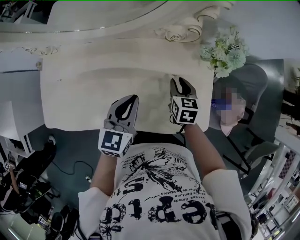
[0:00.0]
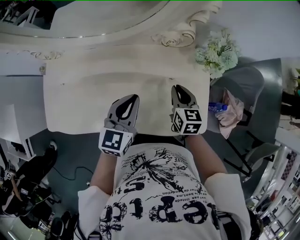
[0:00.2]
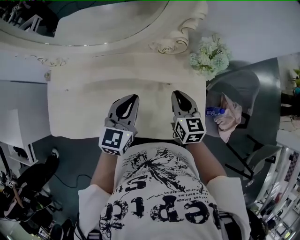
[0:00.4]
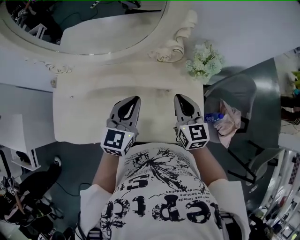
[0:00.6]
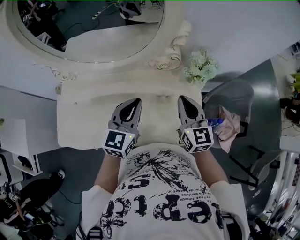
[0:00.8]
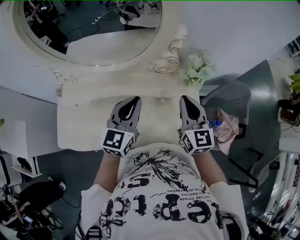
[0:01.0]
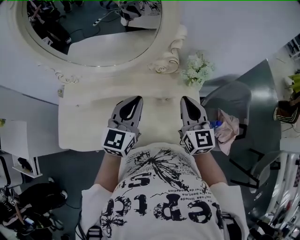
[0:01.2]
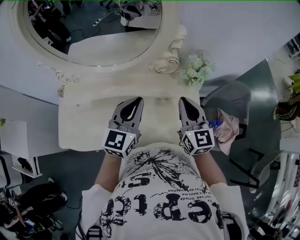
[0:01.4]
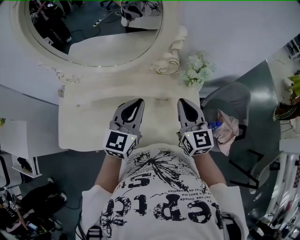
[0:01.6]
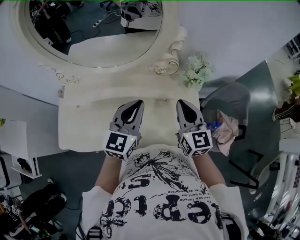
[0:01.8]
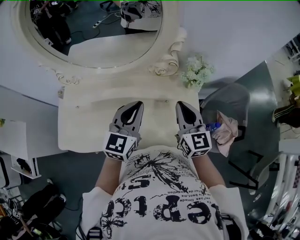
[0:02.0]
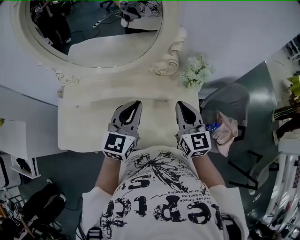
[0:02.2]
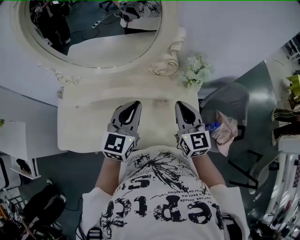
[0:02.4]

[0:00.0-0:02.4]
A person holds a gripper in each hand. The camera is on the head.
0:00.0 to 0:01.2: The right gripper heads upward, covering some 25 cm, tips its fingers upward by some 40 degrees, and closes its fingers. The left gripper travels upward by approximately 15 cm.
0:01.2 to 0:02.4: The grippers move only a little.

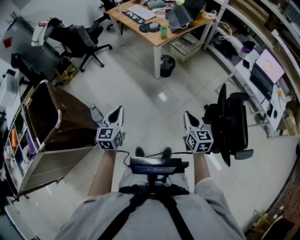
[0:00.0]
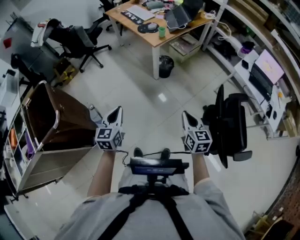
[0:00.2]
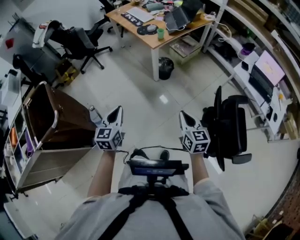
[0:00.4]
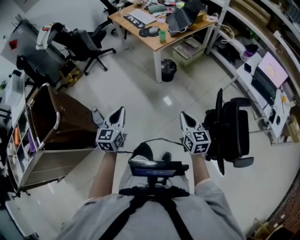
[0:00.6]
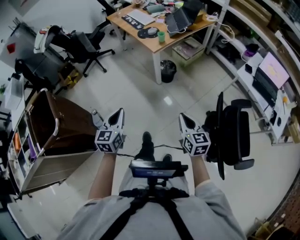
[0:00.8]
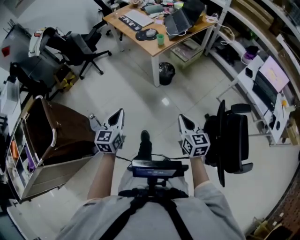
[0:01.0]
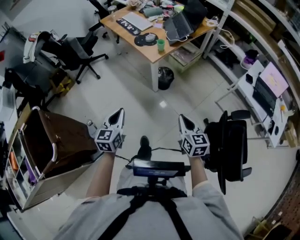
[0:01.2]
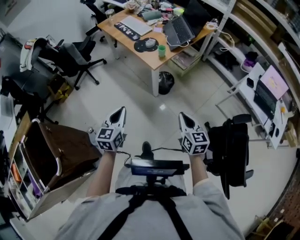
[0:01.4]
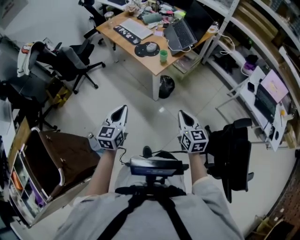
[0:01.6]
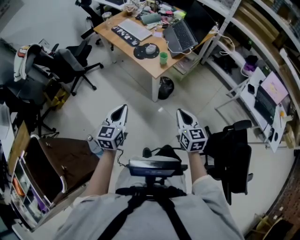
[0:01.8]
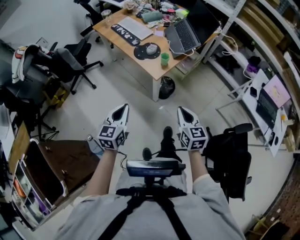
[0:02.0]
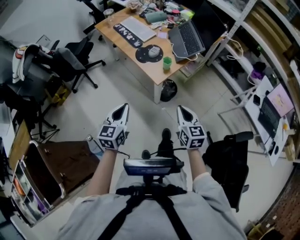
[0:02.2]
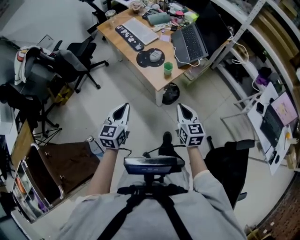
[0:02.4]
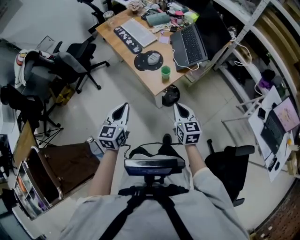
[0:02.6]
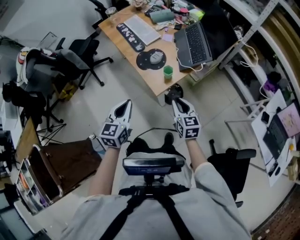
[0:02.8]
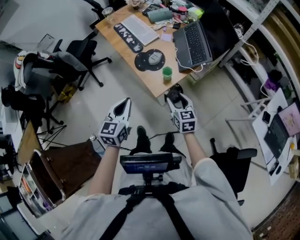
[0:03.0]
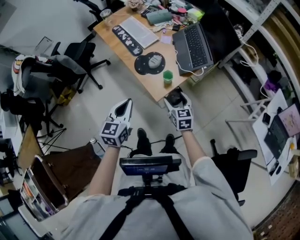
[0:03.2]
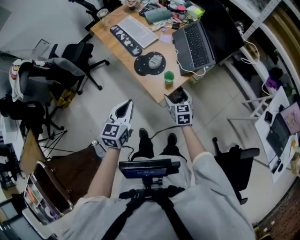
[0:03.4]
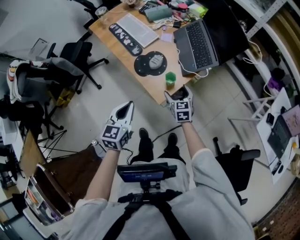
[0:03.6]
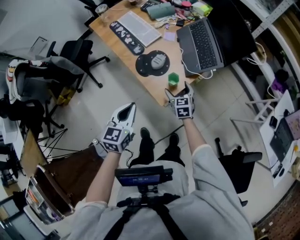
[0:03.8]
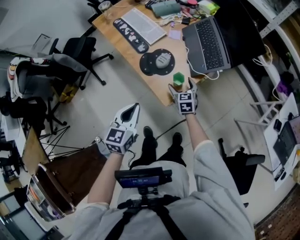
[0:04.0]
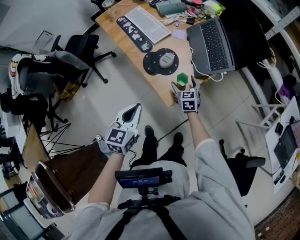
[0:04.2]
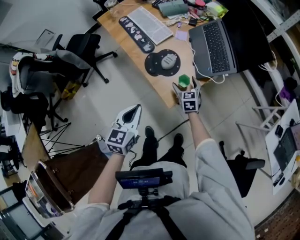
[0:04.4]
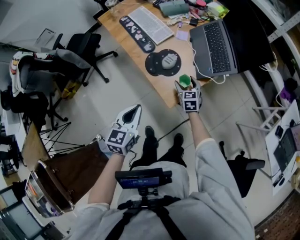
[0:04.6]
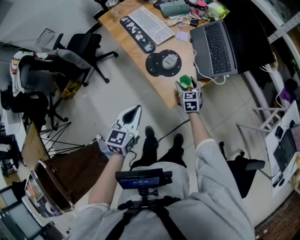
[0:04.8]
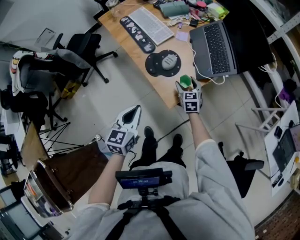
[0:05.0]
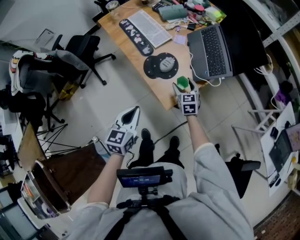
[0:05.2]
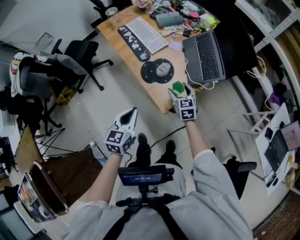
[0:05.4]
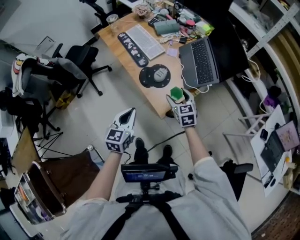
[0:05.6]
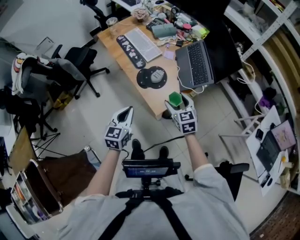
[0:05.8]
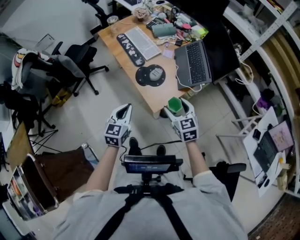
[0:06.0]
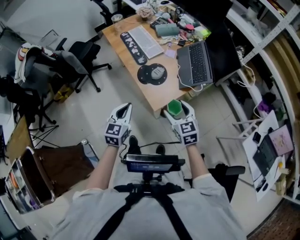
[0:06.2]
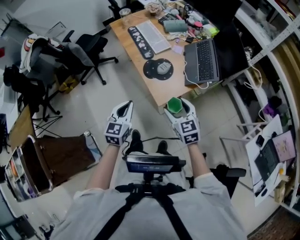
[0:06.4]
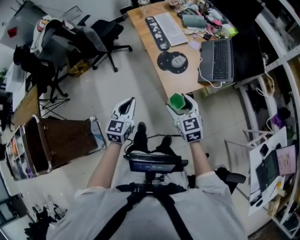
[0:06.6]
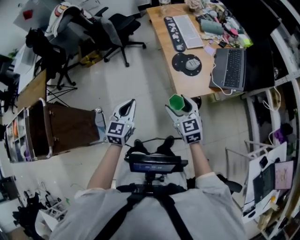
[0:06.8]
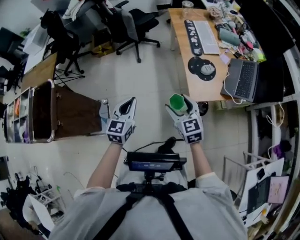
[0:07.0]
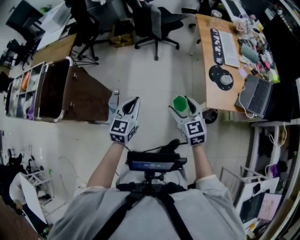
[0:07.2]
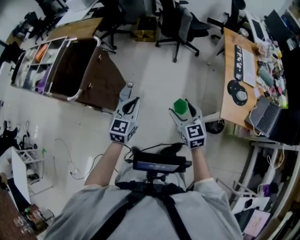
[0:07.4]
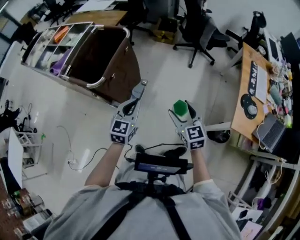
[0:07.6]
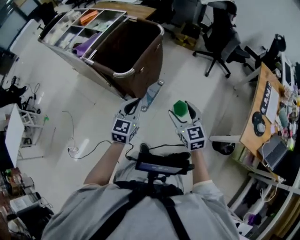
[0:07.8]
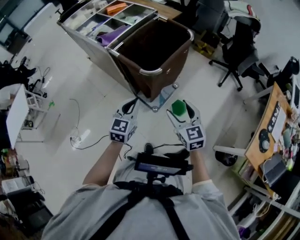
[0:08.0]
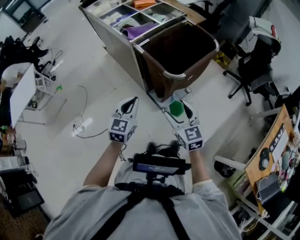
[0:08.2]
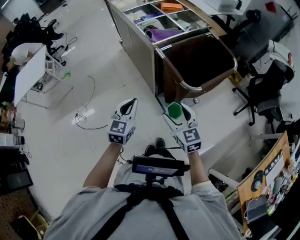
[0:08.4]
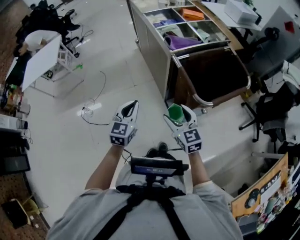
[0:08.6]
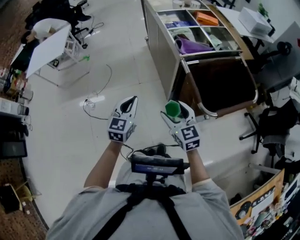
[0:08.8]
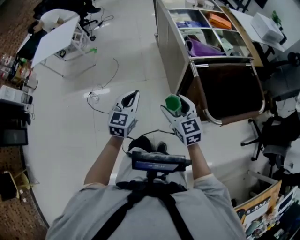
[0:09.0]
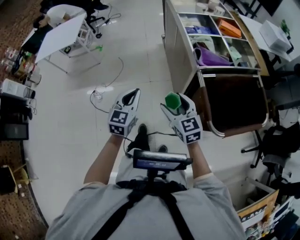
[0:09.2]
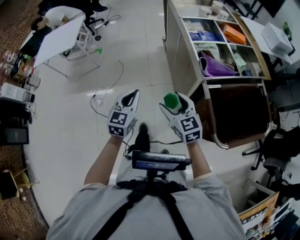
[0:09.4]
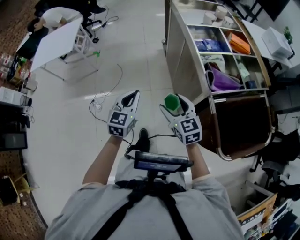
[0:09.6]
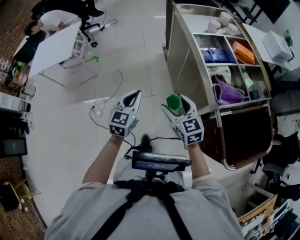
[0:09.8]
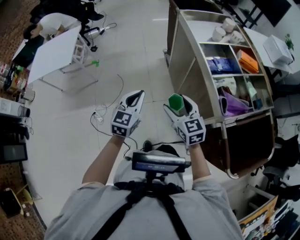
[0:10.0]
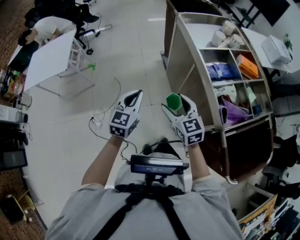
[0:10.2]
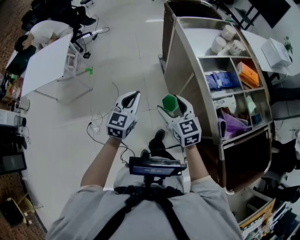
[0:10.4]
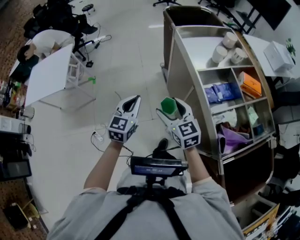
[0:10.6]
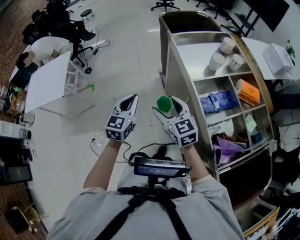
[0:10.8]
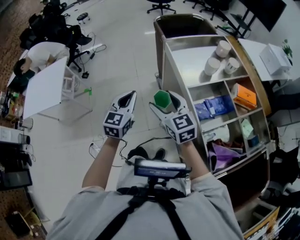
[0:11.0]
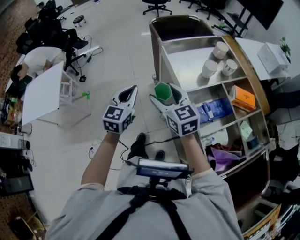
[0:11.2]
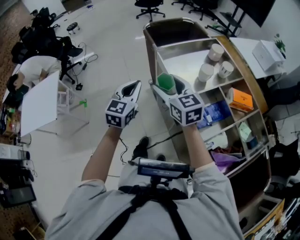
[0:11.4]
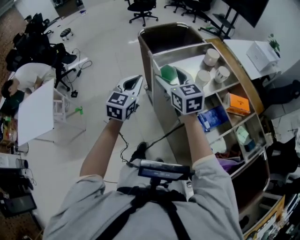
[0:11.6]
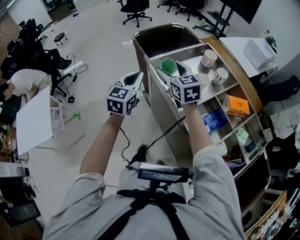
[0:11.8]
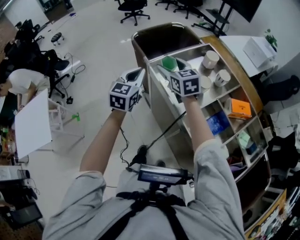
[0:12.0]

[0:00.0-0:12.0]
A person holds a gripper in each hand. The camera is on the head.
0:00.0 to 0:01.6: The grippers both shift forward by some 30 cm.
0:01.6 to 0:03.0: Both grippers travel together forward, some 30 cm. The right gripper opens.
0:03.0 to 0:04.4: The left gripper moves forward and downward, about 10 cm. Meanwhile the right gripper goes some 25 cm forward and downward, and opens up.
0:04.4 to 0:06.0: The right gripper heads upward and backward, covering roughly 25 cm.
0:06.0 to 0:07.6: The pair of grippers is taken about 50 cm. The left gripper turns by approximately 60 degrees; the right gripper rotates about 60 degrees.
0:07.6 to 0:09.0: Both grippers are carried approximately 50 cm. The left gripper rotates approximately 60 degrees, while the right gripper swivels some 60 degrees.
0:09.0 to 0:10.4: The grippers both shift forward by approximately 35 cm.
0:10.4 to 0:12.0: Both grippers are carried forward, about 50 cm.

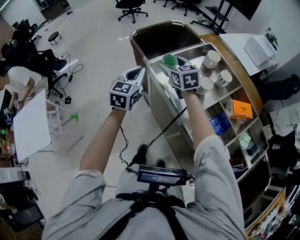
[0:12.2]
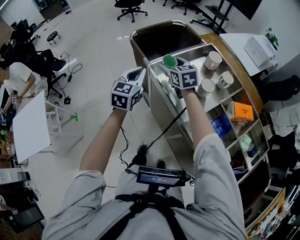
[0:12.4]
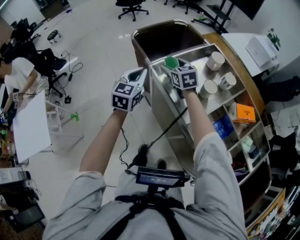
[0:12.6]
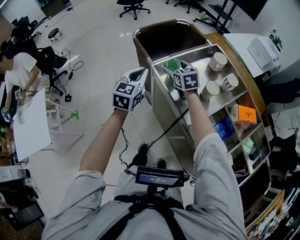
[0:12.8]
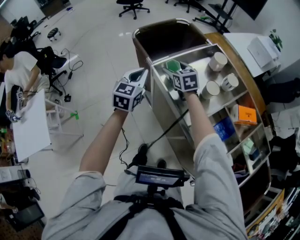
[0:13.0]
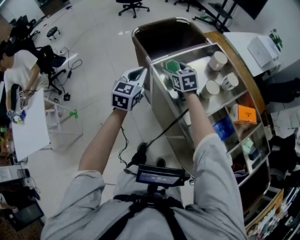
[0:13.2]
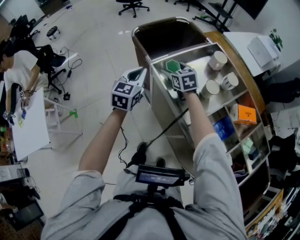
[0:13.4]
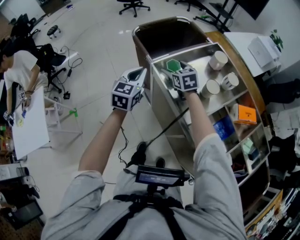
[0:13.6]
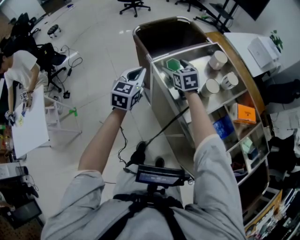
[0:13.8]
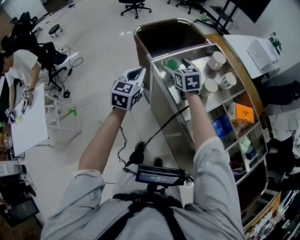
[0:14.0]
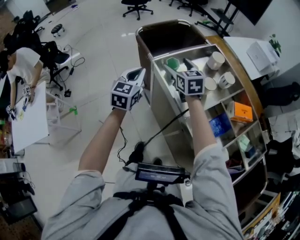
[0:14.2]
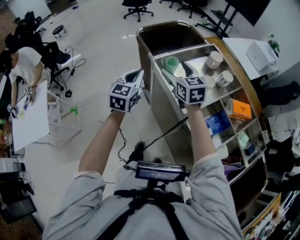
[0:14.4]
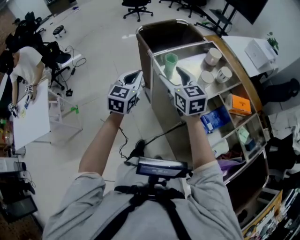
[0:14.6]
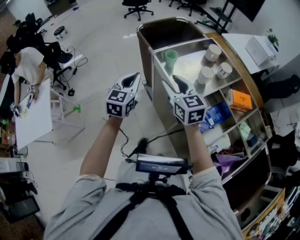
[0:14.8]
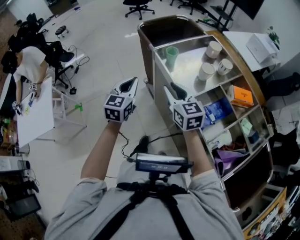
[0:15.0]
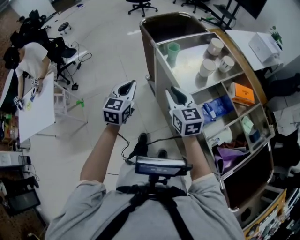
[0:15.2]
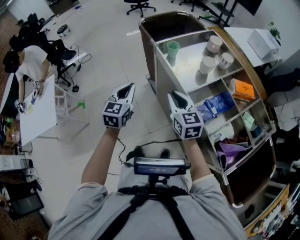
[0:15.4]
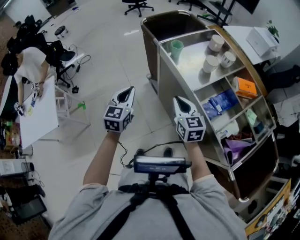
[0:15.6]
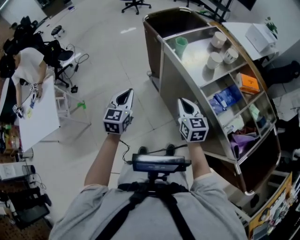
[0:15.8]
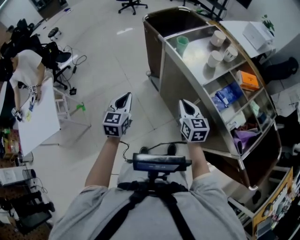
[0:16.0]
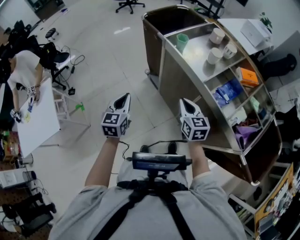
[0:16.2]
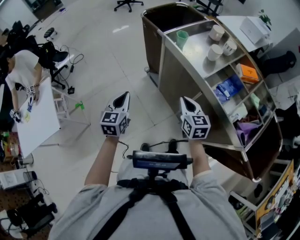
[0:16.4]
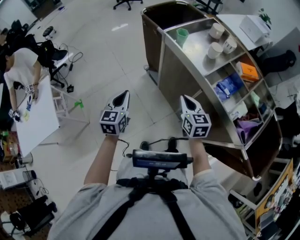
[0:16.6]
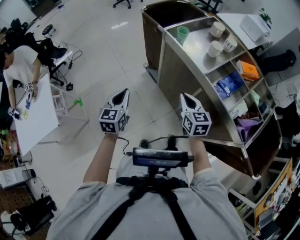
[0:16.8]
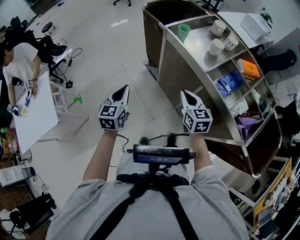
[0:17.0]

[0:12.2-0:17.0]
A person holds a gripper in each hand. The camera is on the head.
0:12.2 to 0:13.8: The right gripper heads downward, covering roughly 10 cm.
0:13.8 to 0:15.4: The grippers both shift backward by about 25 cm. The right gripper closes.
0:15.4 to 0:17.0: The left gripper is displaced to the left, backward and downward by roughly 15 cm. Meanwhile the right gripper goes approximately 10 cm downward and backward.

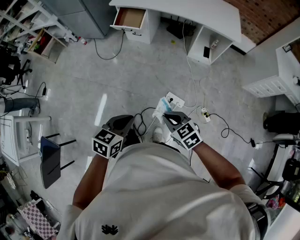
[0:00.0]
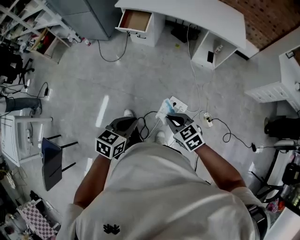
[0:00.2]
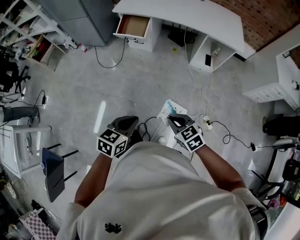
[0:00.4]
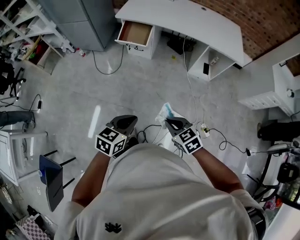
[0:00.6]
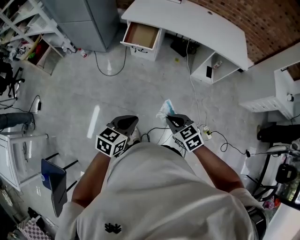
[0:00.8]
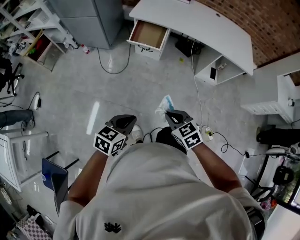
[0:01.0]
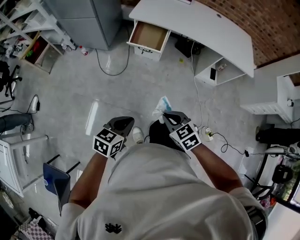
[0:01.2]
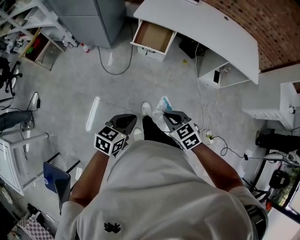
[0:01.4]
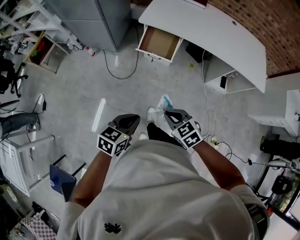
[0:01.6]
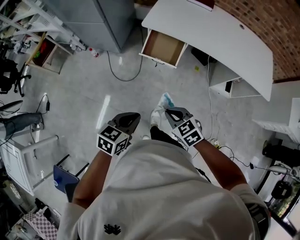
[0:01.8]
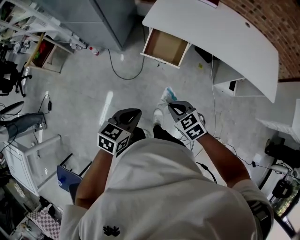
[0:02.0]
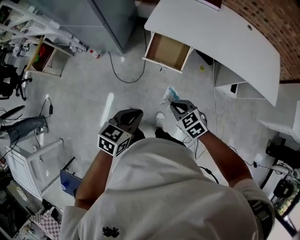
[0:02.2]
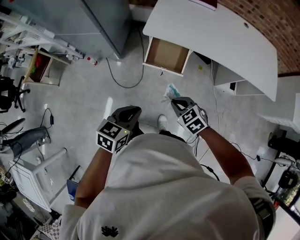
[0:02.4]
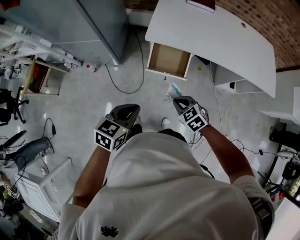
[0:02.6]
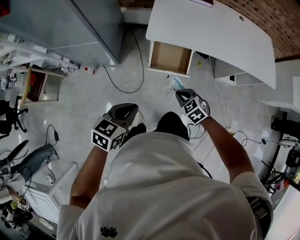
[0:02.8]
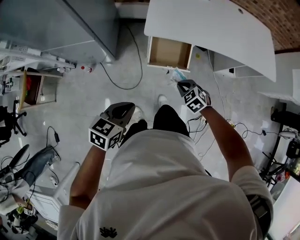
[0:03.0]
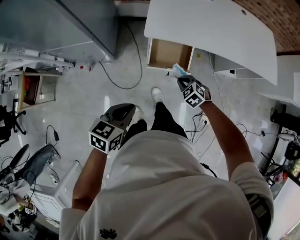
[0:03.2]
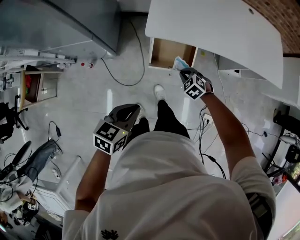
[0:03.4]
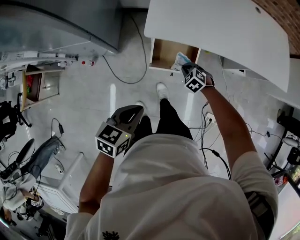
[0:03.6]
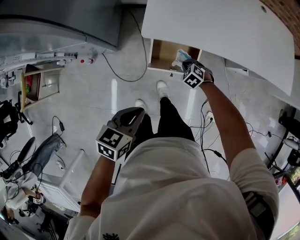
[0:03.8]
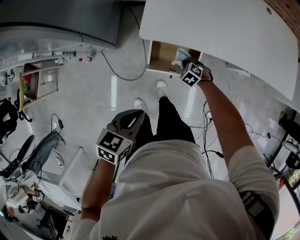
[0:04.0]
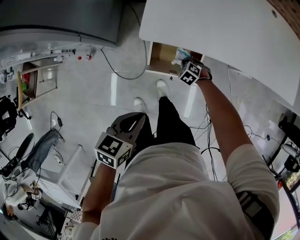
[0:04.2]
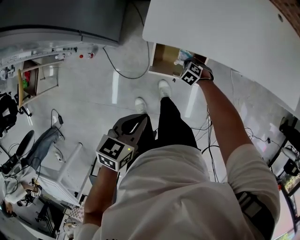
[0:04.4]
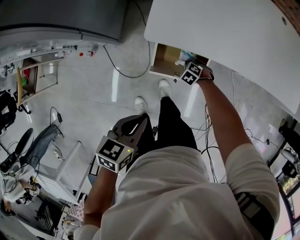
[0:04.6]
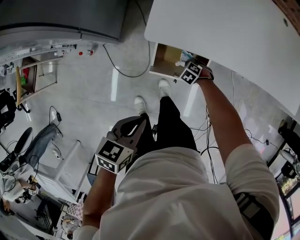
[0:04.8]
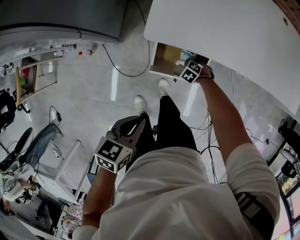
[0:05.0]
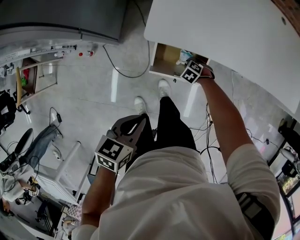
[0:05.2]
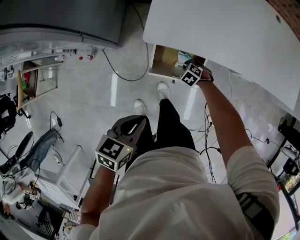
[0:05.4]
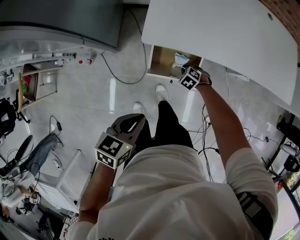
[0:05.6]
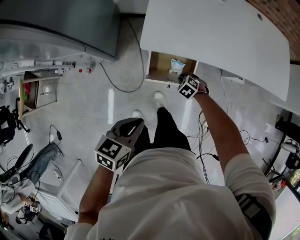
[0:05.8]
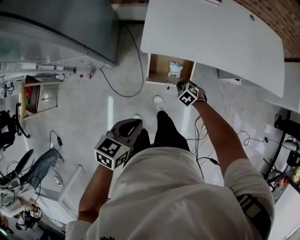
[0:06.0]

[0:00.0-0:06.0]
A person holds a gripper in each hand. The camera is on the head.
0:00.0 to 0:01.6: The two grippers travel together, forward and to the left, some 50 cm.
0:01.6 to 0:03.0: The left gripper shifts roughly 40 cm forward and to the left. Meanwhile the right gripper goes approximately 35 cm forward, and turns by some 20 degrees.
0:03.0 to 0:04.4: The left gripper ends up about 20 cm from where it was. The right gripper is displaced downward by about 30 cm, and rotates approximately 20 degrees.
0:04.4 to 0:06.0: The left gripper ends up some 10 cm from where it was. Meanwhile the right gripper is displaced upward by about 15 cm.
